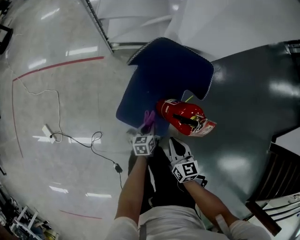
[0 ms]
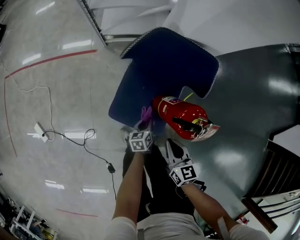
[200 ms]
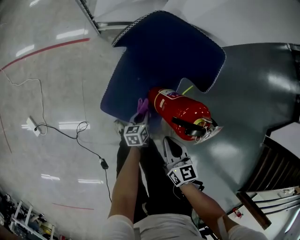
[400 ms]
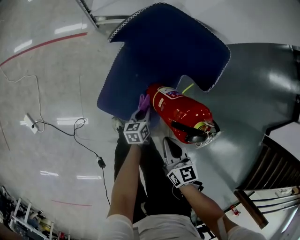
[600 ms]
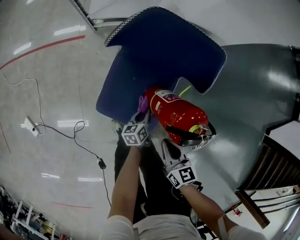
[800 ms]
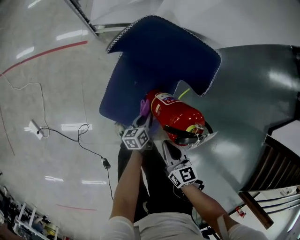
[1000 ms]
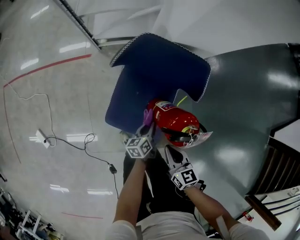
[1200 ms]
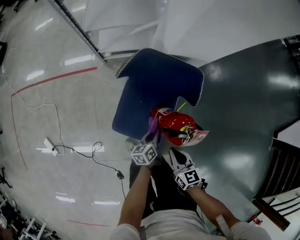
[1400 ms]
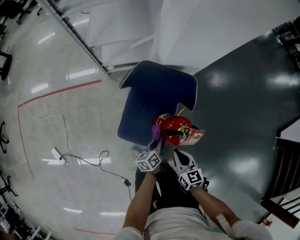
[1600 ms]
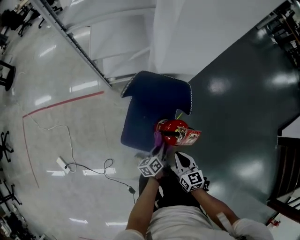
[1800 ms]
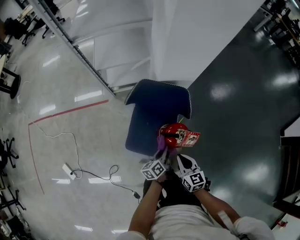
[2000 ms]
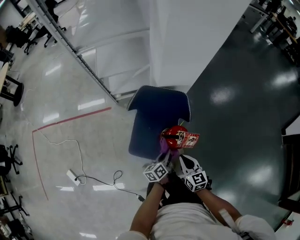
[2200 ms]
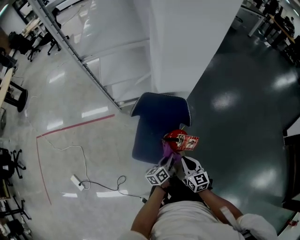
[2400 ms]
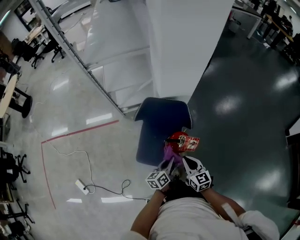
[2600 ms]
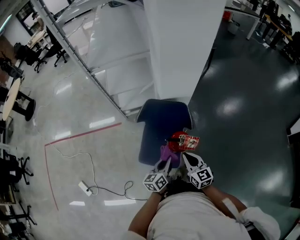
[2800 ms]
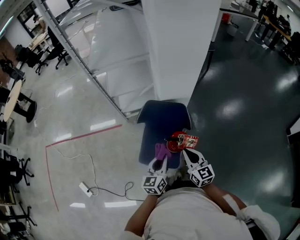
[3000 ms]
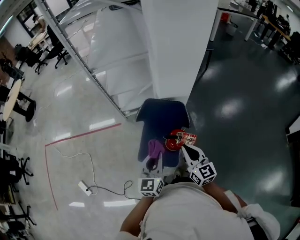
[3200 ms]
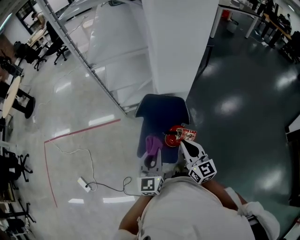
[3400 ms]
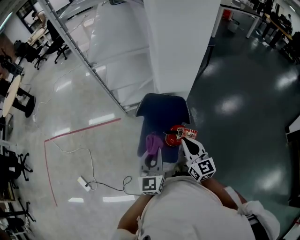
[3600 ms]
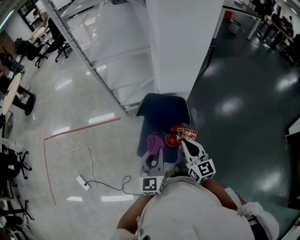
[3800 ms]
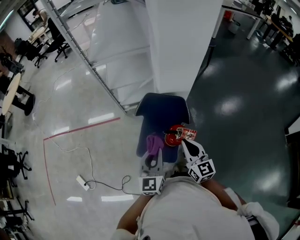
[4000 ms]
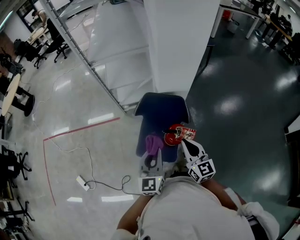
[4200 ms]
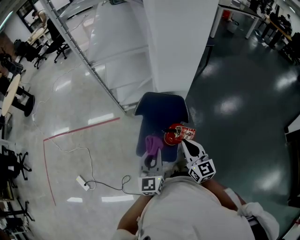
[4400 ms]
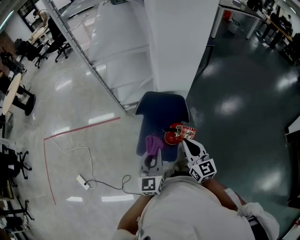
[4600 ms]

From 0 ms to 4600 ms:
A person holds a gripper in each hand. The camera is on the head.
From 0 ms to 1600 ms: The right gripper moves some 5 cm downward and comes back. Meanwhile the left gripper shifts about 10 cm upward and to the right, and changes its angle by roughly 20 degrees.
From 1600 ms to 3000 ms: The grippers both shift upward by some 25 cm. The left gripper swivels about 40 degrees; the right gripper changes its angle by approximately 20 degrees.
From 3000 ms to 4600 ms: The grippers both shift upward by some 10 cm. The left gripper turns by about 20 degrees.

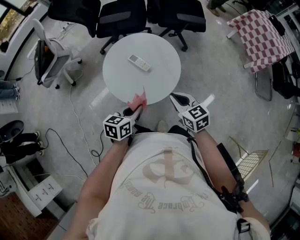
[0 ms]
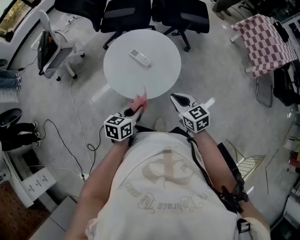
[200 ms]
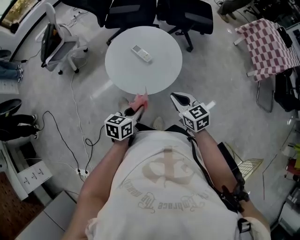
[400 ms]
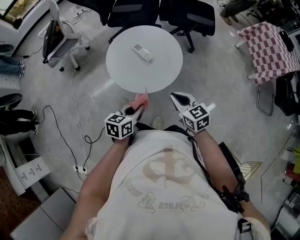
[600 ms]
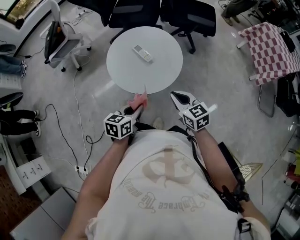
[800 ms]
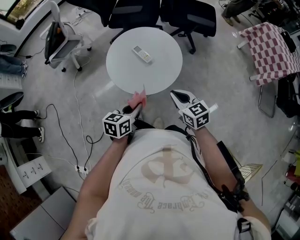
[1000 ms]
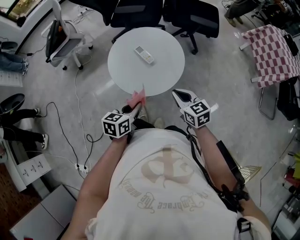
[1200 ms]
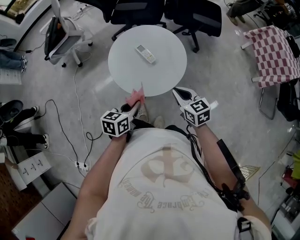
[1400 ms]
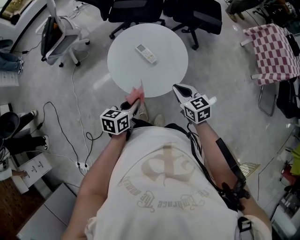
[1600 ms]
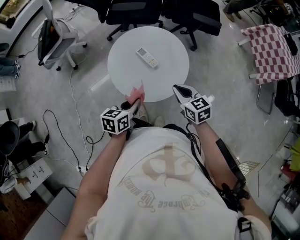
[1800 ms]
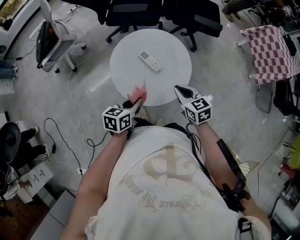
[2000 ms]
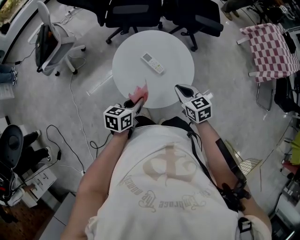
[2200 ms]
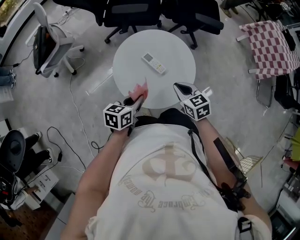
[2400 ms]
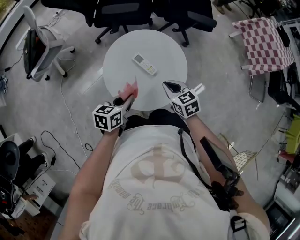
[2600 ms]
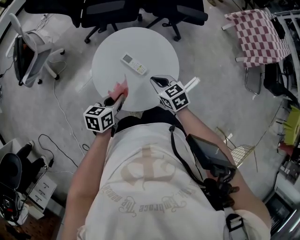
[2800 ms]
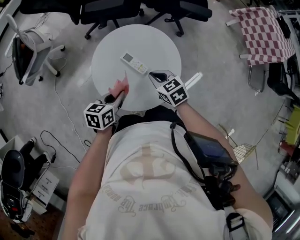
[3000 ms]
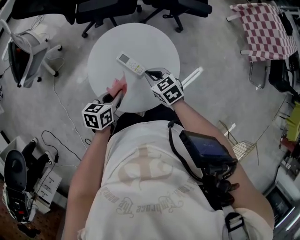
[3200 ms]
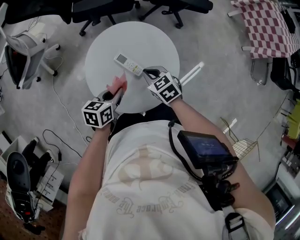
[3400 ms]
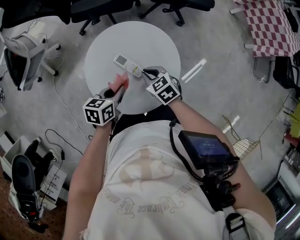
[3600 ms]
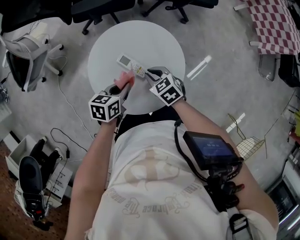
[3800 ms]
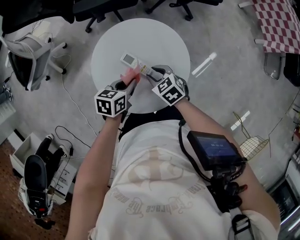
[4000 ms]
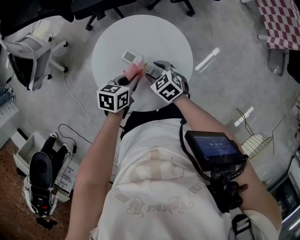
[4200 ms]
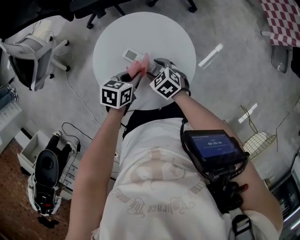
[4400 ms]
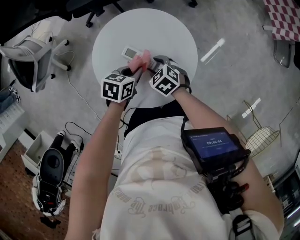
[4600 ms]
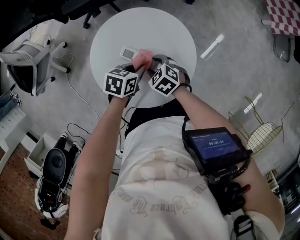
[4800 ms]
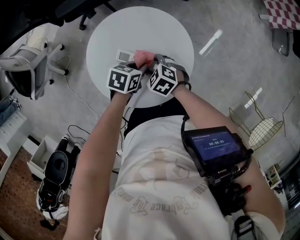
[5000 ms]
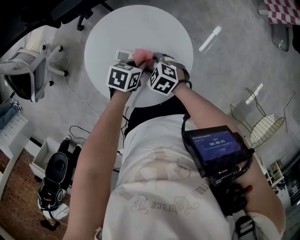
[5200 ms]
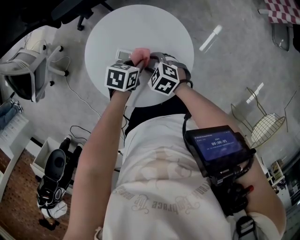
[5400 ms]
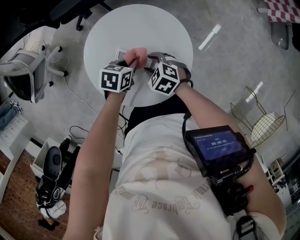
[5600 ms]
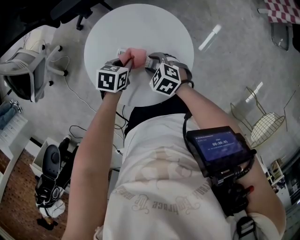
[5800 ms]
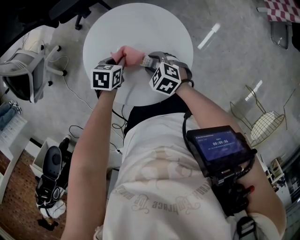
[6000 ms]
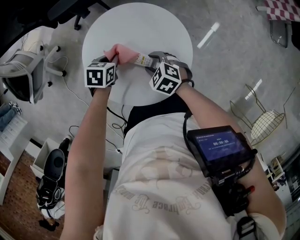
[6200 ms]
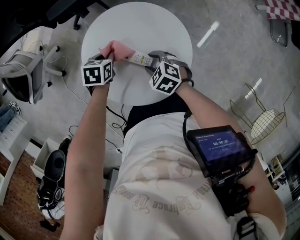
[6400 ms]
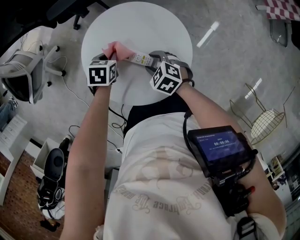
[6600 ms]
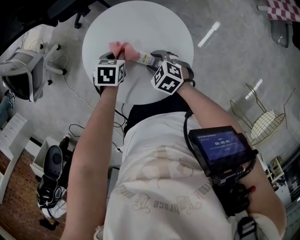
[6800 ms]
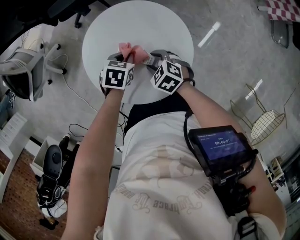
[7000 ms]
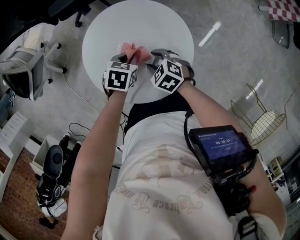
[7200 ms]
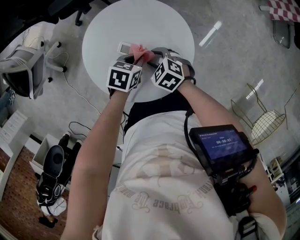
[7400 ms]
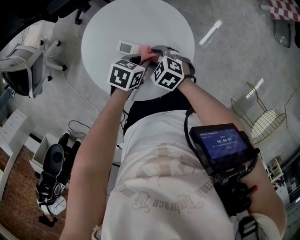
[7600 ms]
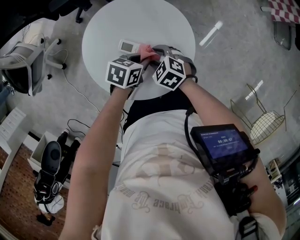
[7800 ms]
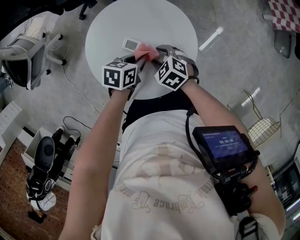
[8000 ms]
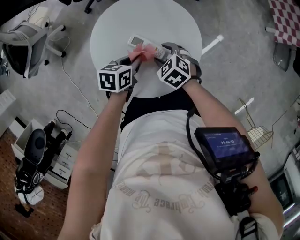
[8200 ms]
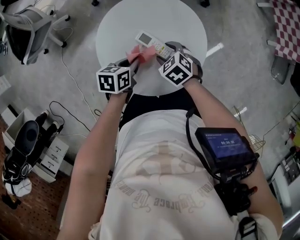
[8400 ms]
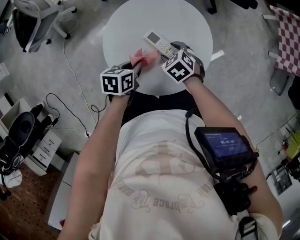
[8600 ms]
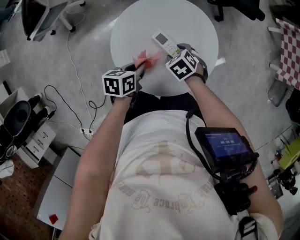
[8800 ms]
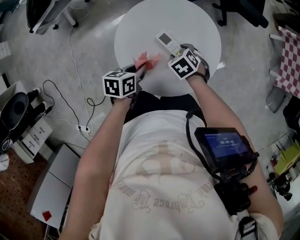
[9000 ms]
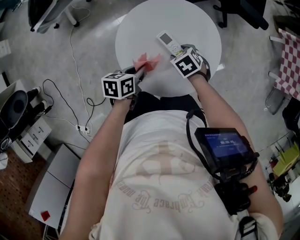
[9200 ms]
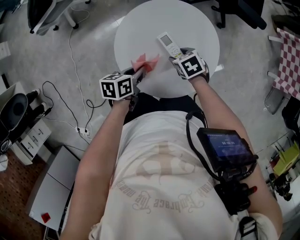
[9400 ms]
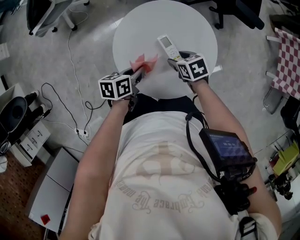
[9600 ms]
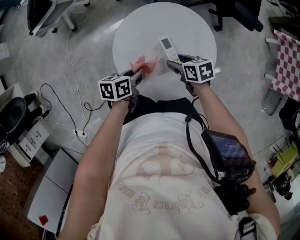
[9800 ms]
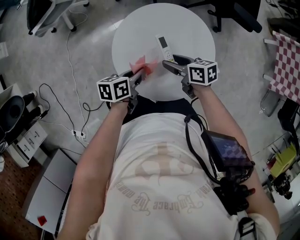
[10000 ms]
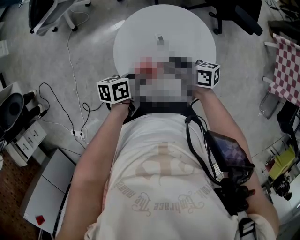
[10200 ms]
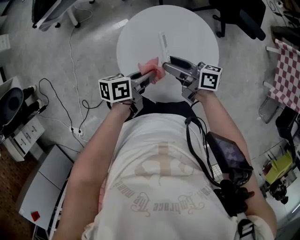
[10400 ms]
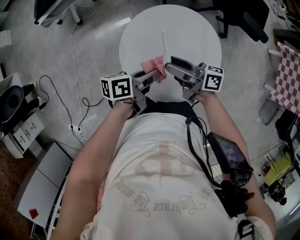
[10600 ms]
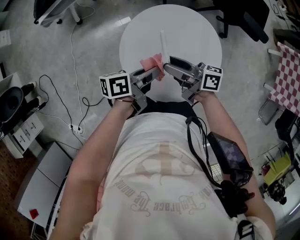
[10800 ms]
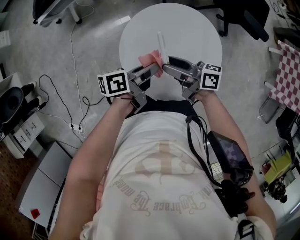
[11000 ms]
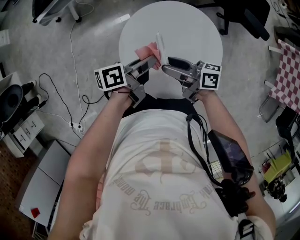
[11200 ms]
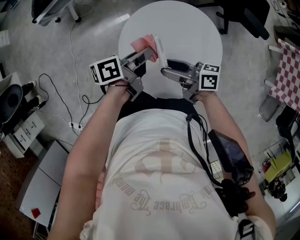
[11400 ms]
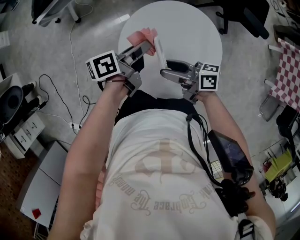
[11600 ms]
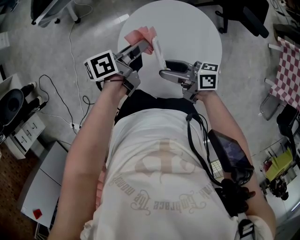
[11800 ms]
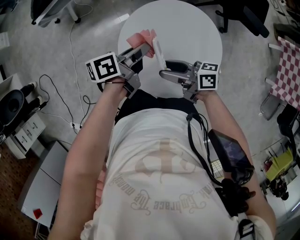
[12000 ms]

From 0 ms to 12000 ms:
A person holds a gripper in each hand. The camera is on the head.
From 1600 ms to 3000 ms: The left gripper moves forward, approximately 15 cm. Meanwhile the right gripper goes some 15 cm forward, to the left and downward.
From 3000 ms to 4400 ms: The left gripper moves forward, downward and to the right, approximately 10 cm, while the right gripper shifts roughly 10 cm downward, and opens its fingers.
From 4400 ms to 6000 ms: The left gripper moves about 5 cm.
From 6000 ms to 7600 ms: The left gripper shifts by about 10 cm.
From 7600 ms to 9000 ms: The left gripper changes place by approximately 15 cm, and turns by roughly 50 degrees.
From 9000 ms to 10400 ms: The left gripper shifts approximately 5 cm upward, and rotates approximately 30 degrees, while the right gripper travels upward by some 15 cm, and points its fingers roughly 70 degrees further upward.
From 10400 ms to 12000 ms: The left gripper shifts by approximately 10 cm.

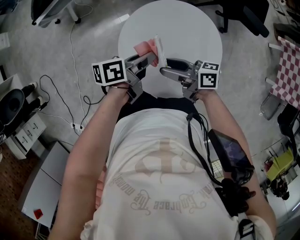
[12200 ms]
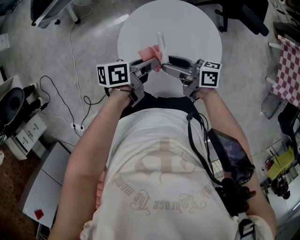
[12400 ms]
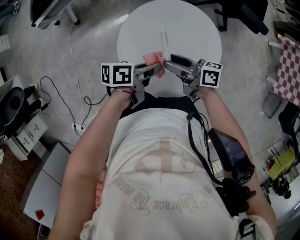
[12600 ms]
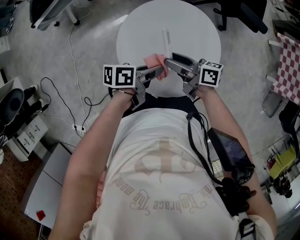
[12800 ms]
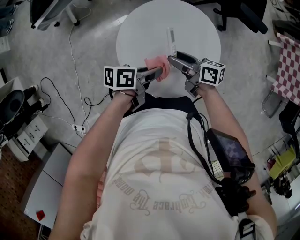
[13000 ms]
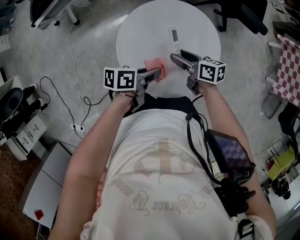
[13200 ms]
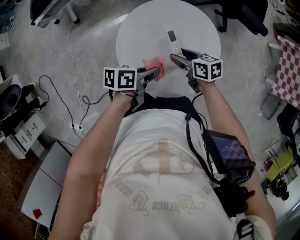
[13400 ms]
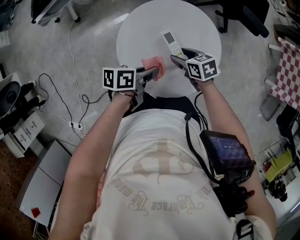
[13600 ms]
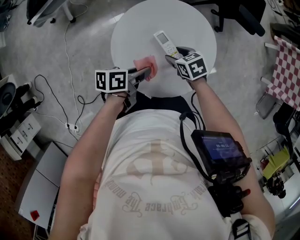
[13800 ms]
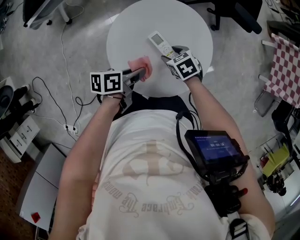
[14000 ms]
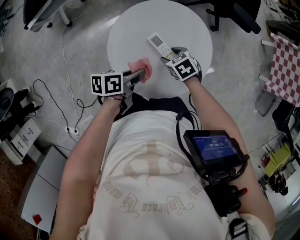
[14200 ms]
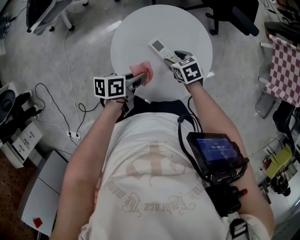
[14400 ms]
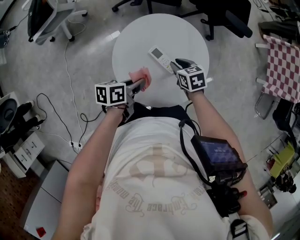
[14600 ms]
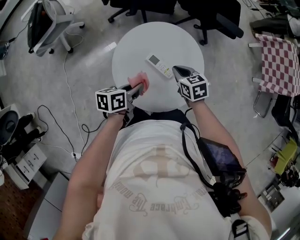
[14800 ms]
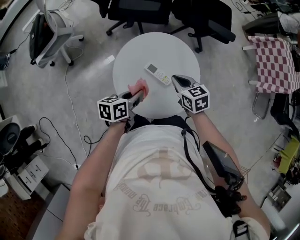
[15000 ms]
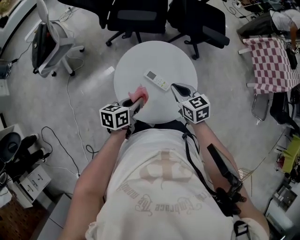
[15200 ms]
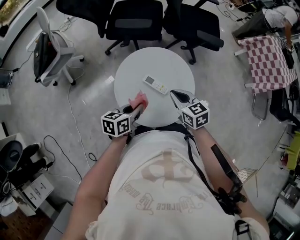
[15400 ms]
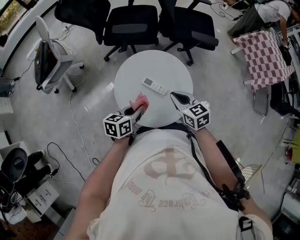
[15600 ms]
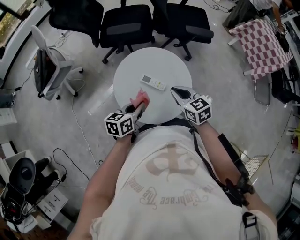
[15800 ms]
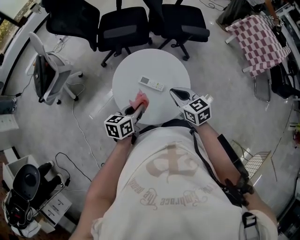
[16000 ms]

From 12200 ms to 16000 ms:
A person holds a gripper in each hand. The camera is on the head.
From 12200 ms to 13400 ms: The right gripper shifts some 10 cm downward, and tilts its fingers roughly 30 degrees downward. The left gripper moves roughly 10 cm.
From 13400 ms to 14800 ms: The right gripper moves roughly 5 cm, turns by about 30 degrees, and closes.
From 14800 ms to 16000 ms: The right gripper heads upward and backward, covering about 15 cm, and rotates some 20 degrees. Meanwhile the left gripper travels upward by some 5 cm, and changes its angle by approximately 20 degrees.

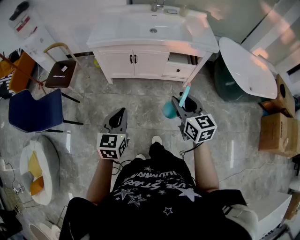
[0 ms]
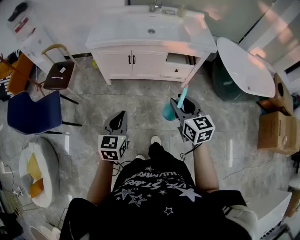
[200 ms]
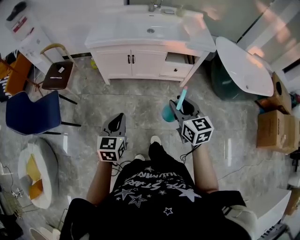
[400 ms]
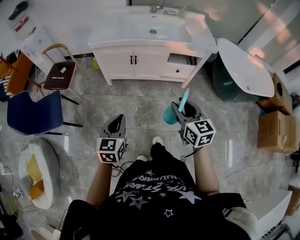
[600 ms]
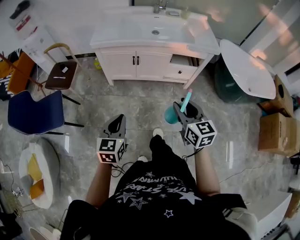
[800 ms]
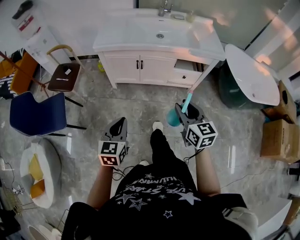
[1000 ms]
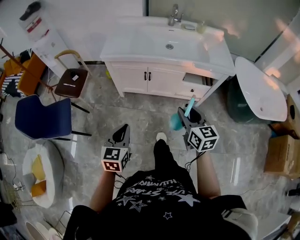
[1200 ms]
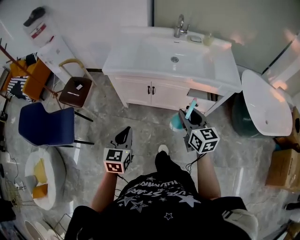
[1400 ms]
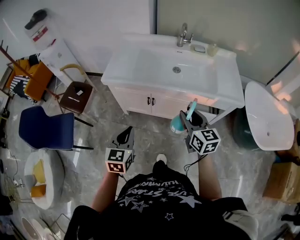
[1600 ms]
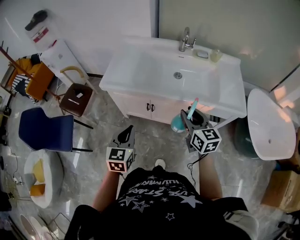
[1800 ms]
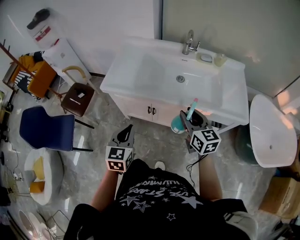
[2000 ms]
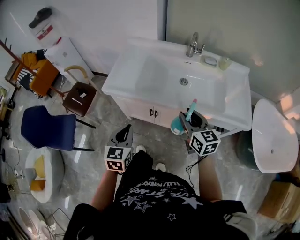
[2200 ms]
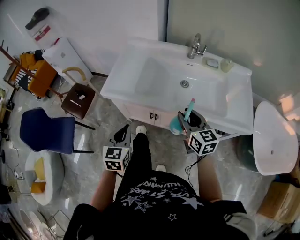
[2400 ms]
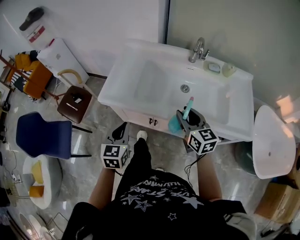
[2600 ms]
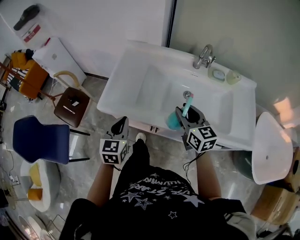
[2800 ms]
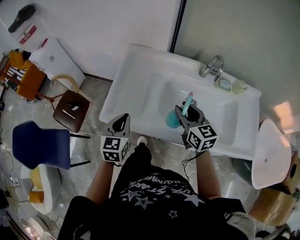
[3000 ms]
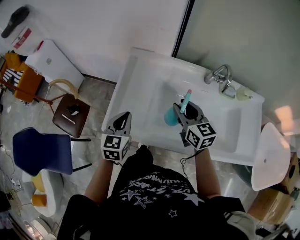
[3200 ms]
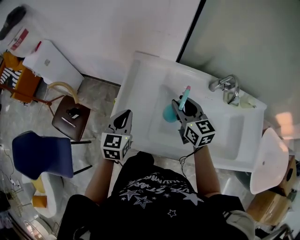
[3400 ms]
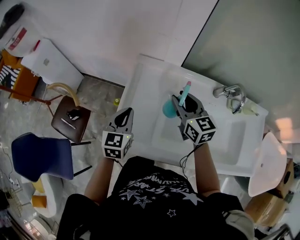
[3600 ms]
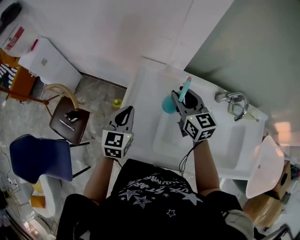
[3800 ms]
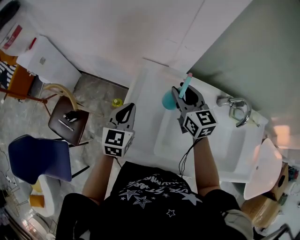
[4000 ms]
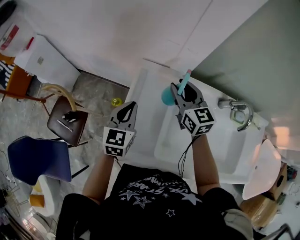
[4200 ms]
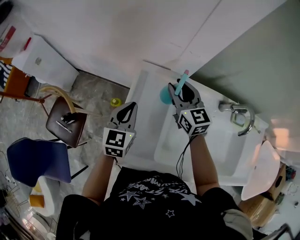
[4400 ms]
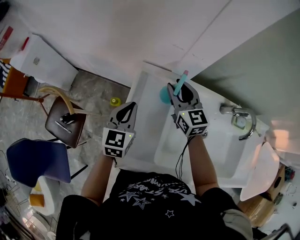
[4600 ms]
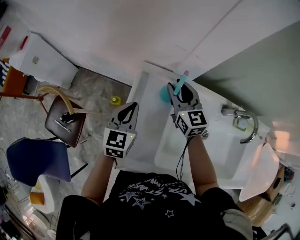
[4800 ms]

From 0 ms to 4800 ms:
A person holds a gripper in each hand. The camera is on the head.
From 0 ms to 1600 ms: Both grippers travel together forward, about 25 cm.
From 1600 ms to 3200 ms: The pair of grippers is taken forward, approximately 40 cm.
From 3200 ms to 4800 ms: Both grippers travel together forward, roughly 25 cm.
